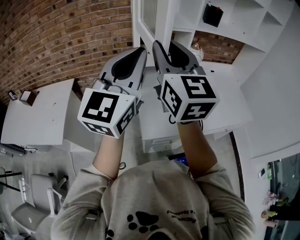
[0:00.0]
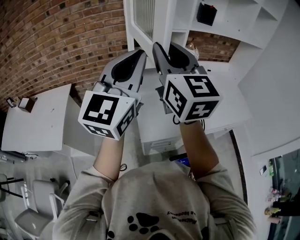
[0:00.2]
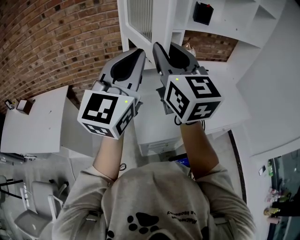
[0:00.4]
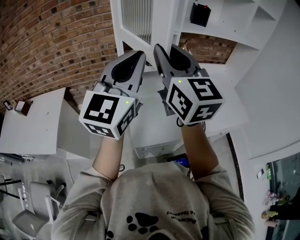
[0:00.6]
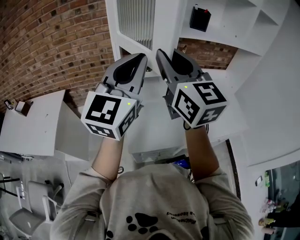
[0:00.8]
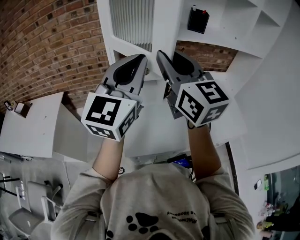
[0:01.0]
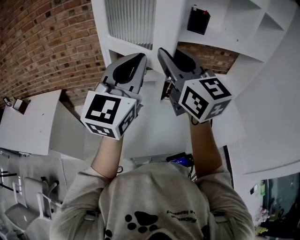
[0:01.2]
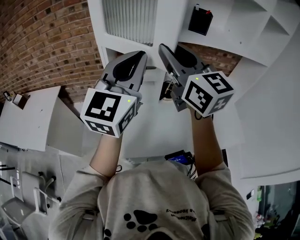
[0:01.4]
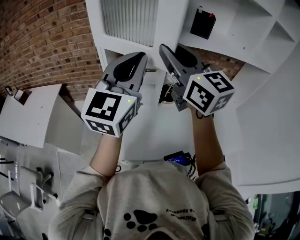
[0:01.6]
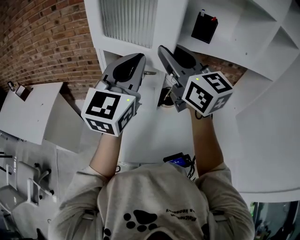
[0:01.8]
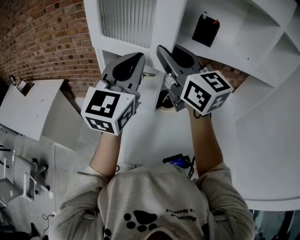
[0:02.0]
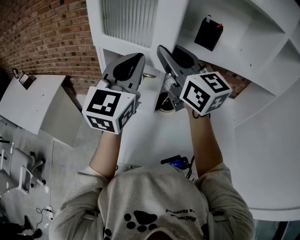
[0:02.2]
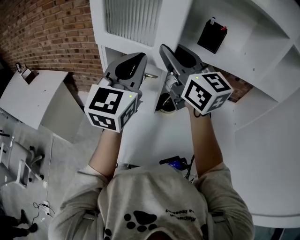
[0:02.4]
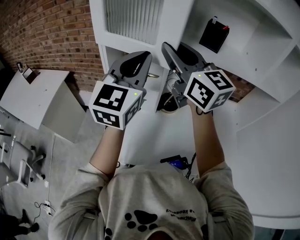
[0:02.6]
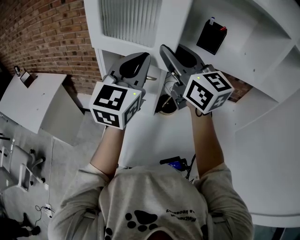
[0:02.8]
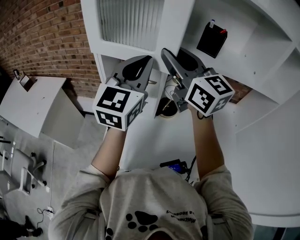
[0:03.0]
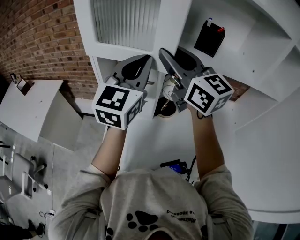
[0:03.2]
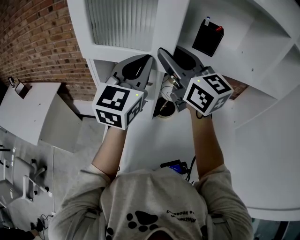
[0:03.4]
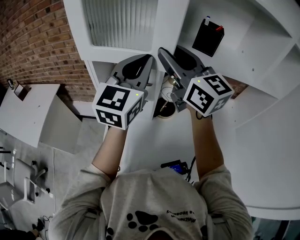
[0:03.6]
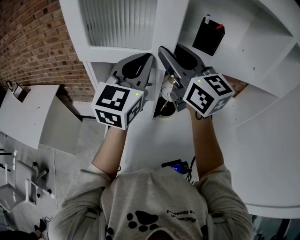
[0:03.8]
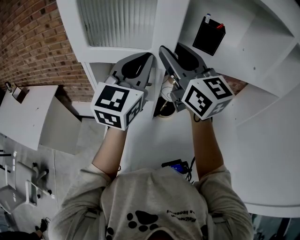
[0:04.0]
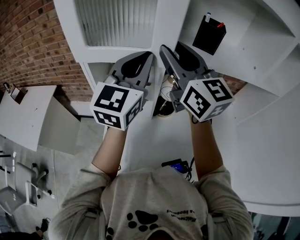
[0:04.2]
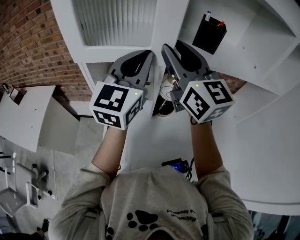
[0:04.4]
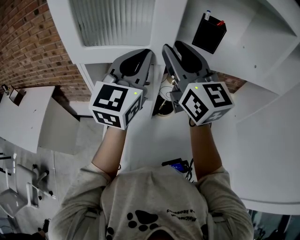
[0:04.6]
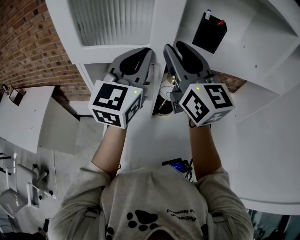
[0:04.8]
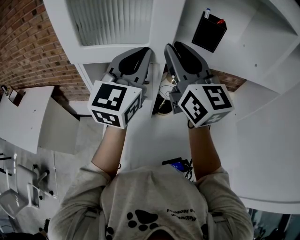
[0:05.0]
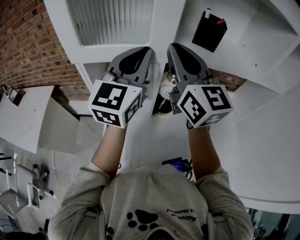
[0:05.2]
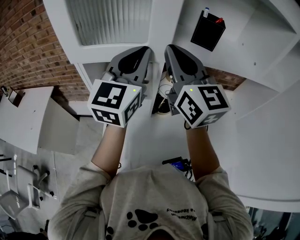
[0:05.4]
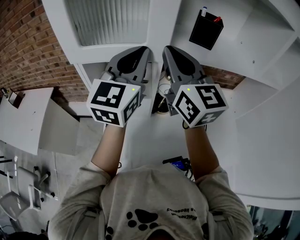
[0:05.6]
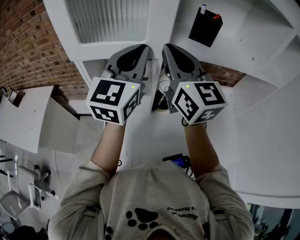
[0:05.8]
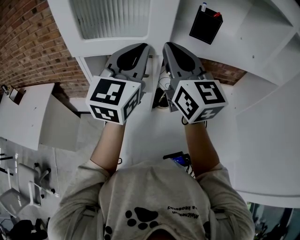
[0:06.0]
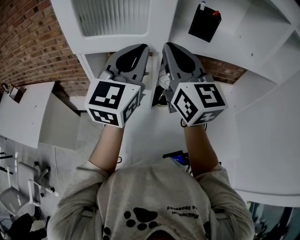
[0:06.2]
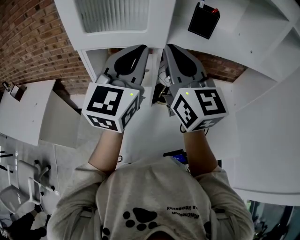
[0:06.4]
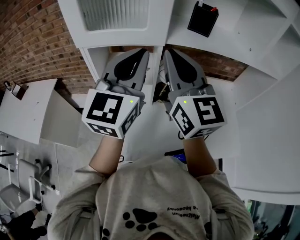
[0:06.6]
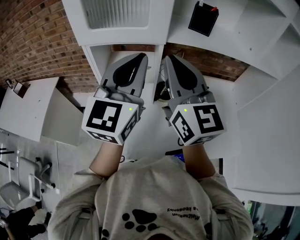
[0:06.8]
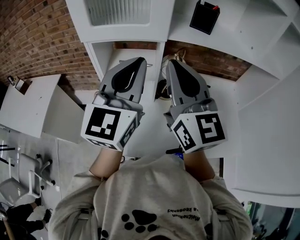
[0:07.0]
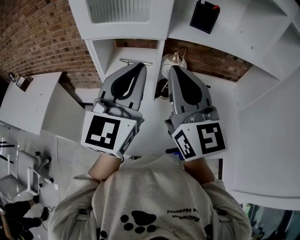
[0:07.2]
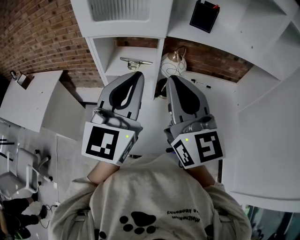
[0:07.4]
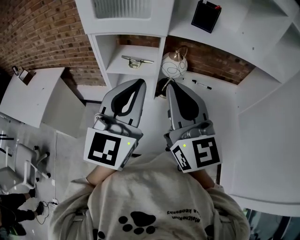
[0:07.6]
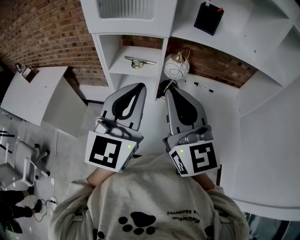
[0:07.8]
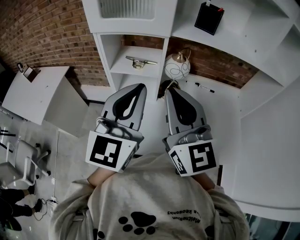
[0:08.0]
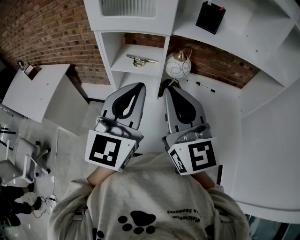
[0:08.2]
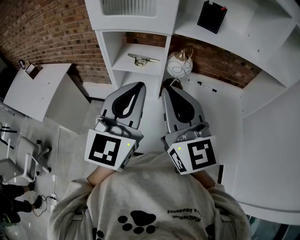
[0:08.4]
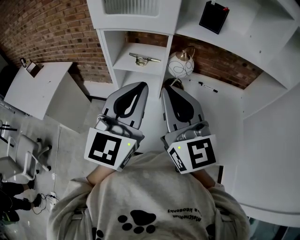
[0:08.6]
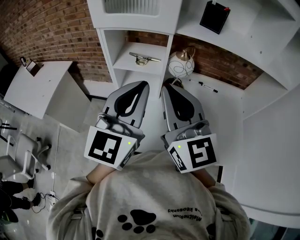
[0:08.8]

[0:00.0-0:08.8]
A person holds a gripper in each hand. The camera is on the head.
0:00.0 to 0:01.4: Both grippers move to the right and forward, approximately 20 cm.
0:01.4 to 0:03.0: The two grippers go approximately 10 cm forward and to the right.
0:03.0 to 0:04.4: The left gripper moves forward, roughly 5 cm.
0:04.4 to 0:05.8: The right gripper closes.
0:05.8 to 0:07.4: The two grippers go about 20 cm backward.
0:07.4 to 0:08.8: There are only small adjustments of the grippers.

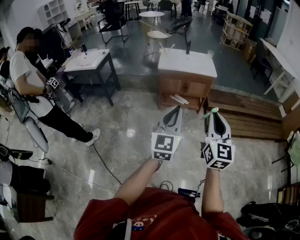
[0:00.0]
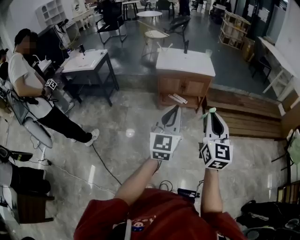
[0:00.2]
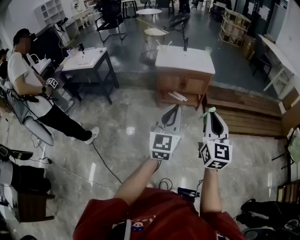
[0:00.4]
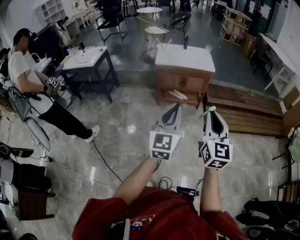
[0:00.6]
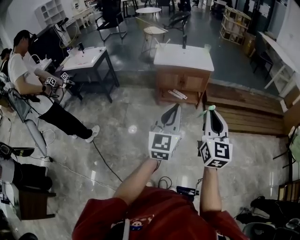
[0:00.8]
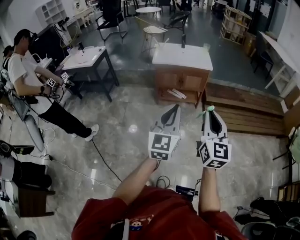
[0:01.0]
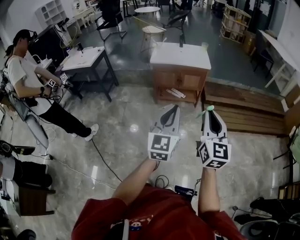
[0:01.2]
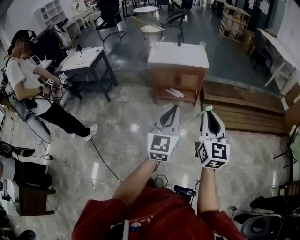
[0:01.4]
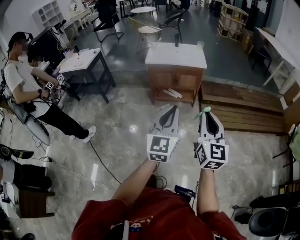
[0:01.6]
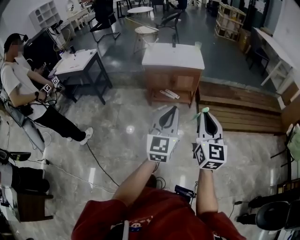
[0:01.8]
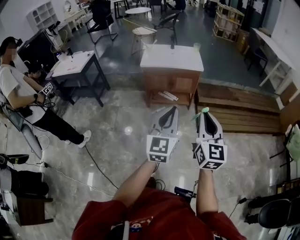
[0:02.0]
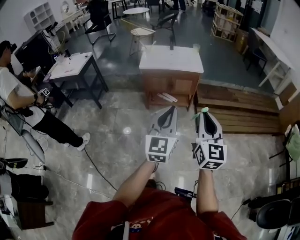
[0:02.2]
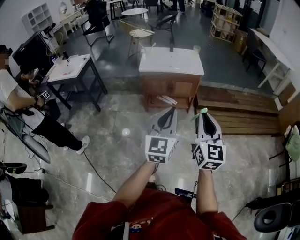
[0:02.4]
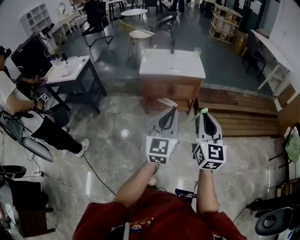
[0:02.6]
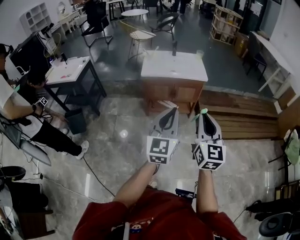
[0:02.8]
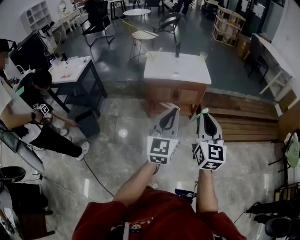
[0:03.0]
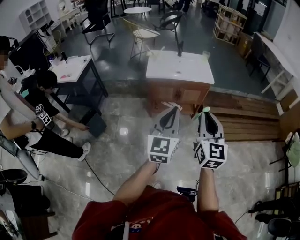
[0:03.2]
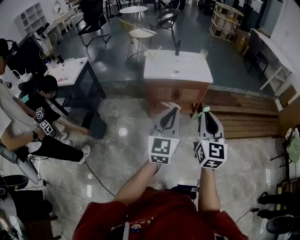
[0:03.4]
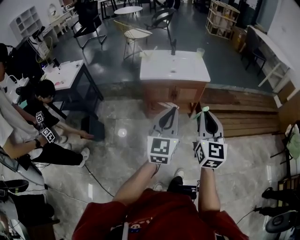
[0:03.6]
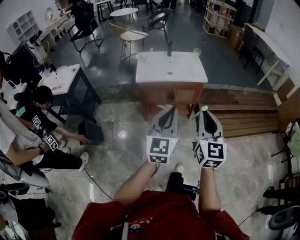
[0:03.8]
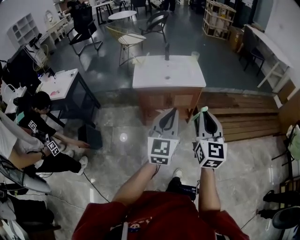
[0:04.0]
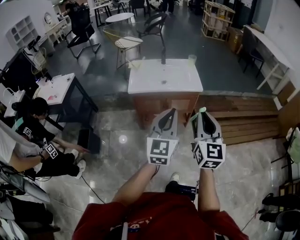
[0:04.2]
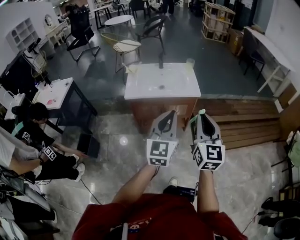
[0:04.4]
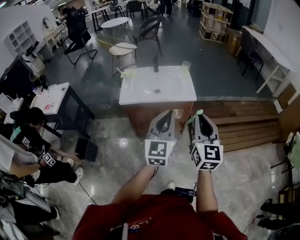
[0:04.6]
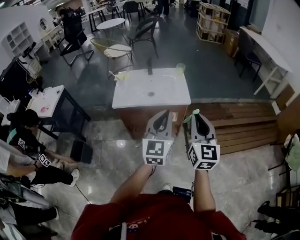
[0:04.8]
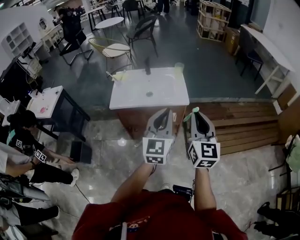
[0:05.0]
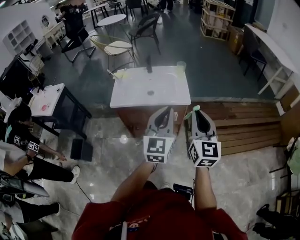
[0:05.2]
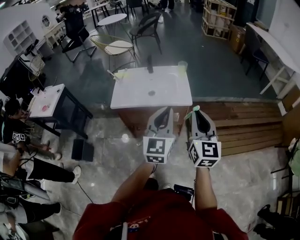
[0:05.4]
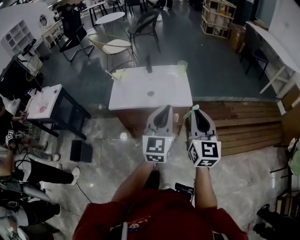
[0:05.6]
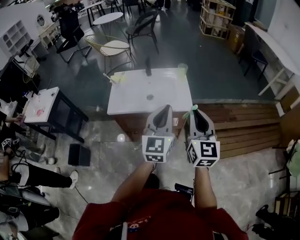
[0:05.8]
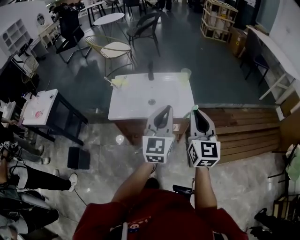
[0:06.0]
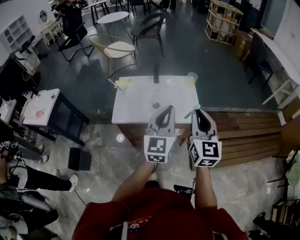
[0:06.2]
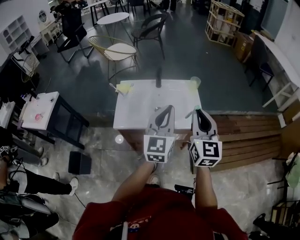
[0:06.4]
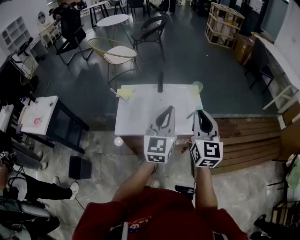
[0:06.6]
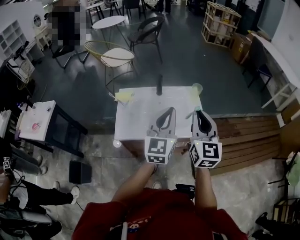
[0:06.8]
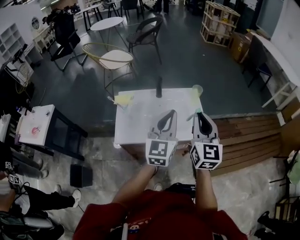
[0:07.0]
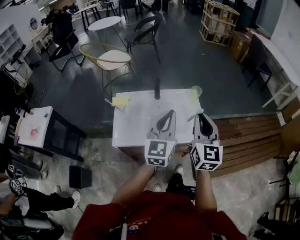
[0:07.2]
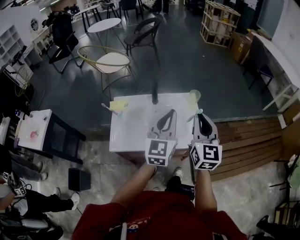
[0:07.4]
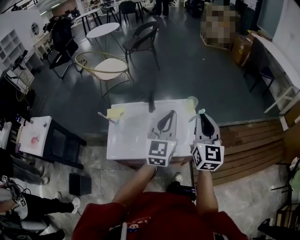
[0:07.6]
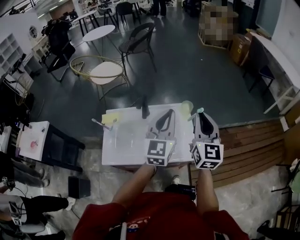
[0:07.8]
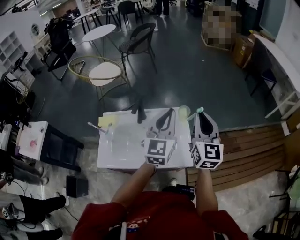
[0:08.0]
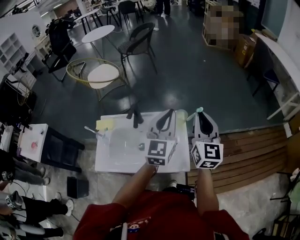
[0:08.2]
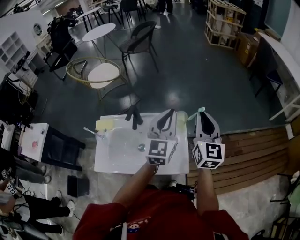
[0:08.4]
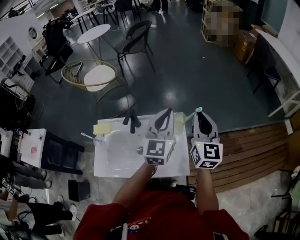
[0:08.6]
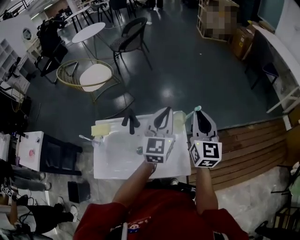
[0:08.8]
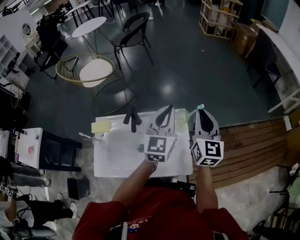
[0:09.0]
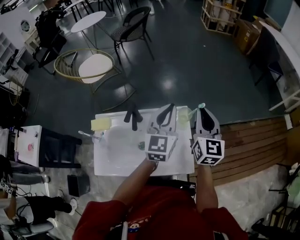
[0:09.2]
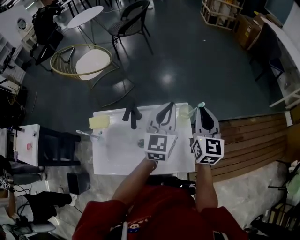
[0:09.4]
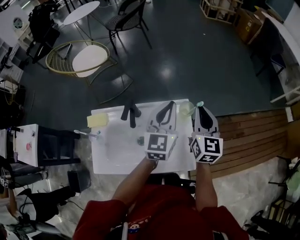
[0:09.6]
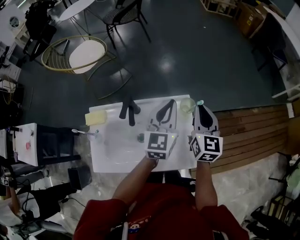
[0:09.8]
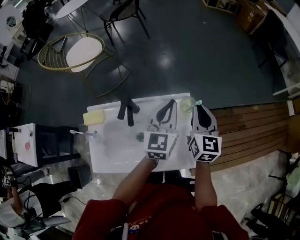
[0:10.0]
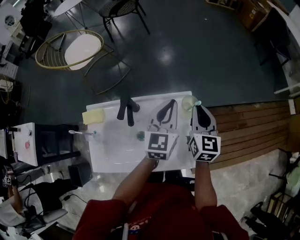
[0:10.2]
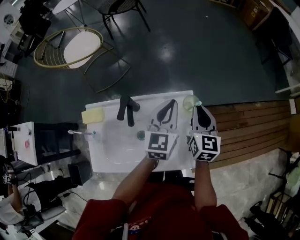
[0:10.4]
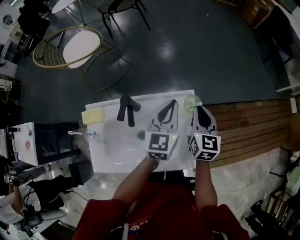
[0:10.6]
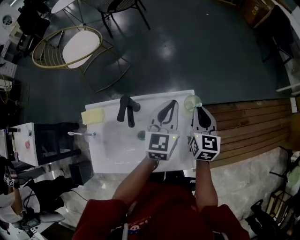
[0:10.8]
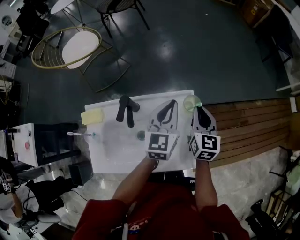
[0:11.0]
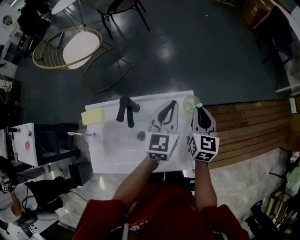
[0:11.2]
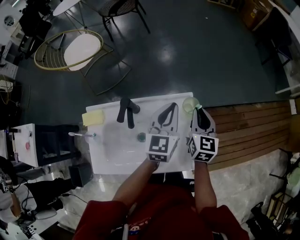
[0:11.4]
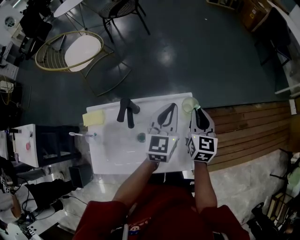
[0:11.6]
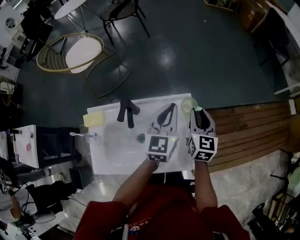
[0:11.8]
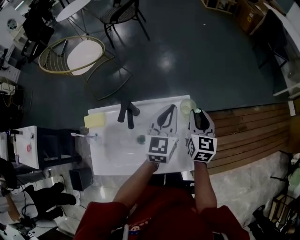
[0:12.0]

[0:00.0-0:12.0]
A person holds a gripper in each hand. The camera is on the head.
0:00.0 to 0:01.6: Both grippers move to the right, about 10 cm.
0:01.6 to 0:03.0: The grippers both shift forward and to the left by roughly 20 cm.
0:03.0 to 0:04.4: Both grippers move forward and to the right, some 20 cm.
0:04.4 to 0:06.0: The two grippers go some 25 cm forward.
0:06.0 to 0:07.6: Both grippers move forward, some 25 cm.
0:07.6 to 0:09.0: The two grippers go roughly 20 cm forward.
0:09.0 to 0:10.4: The right gripper is displaced downward by some 15 cm; the left gripper is displaced downward and forward by approximately 15 cm.
0:10.4 to 0:12.0: There are only small adjustments of the grippers.

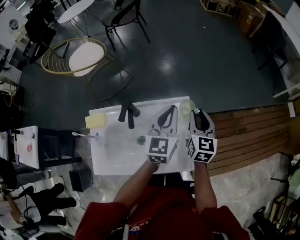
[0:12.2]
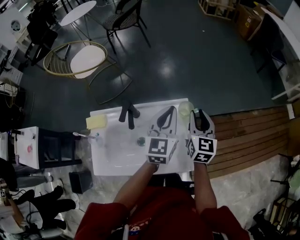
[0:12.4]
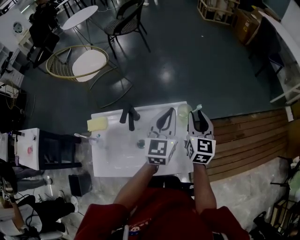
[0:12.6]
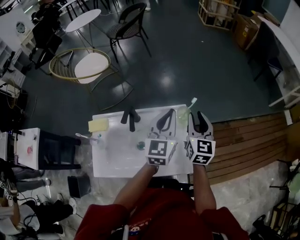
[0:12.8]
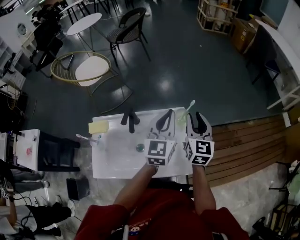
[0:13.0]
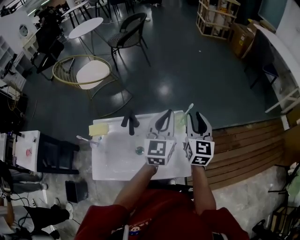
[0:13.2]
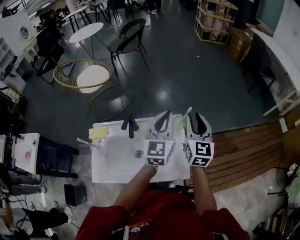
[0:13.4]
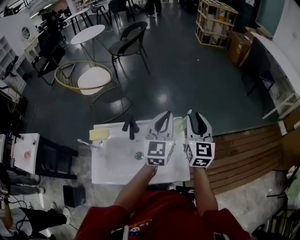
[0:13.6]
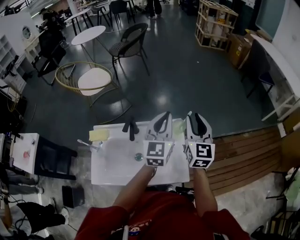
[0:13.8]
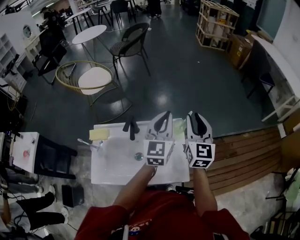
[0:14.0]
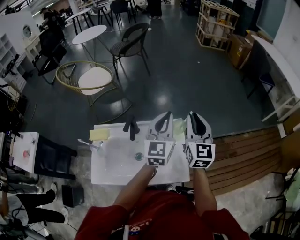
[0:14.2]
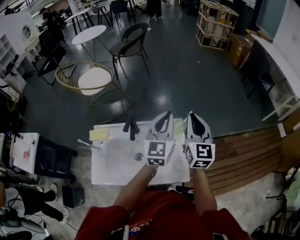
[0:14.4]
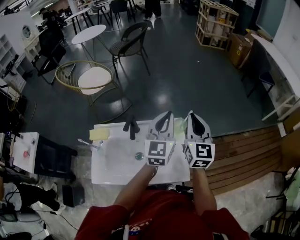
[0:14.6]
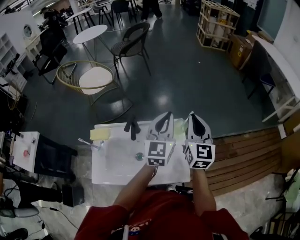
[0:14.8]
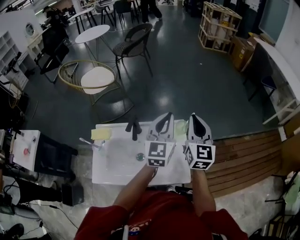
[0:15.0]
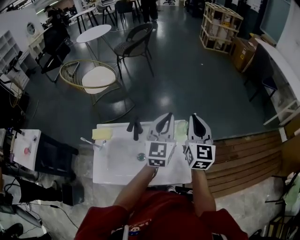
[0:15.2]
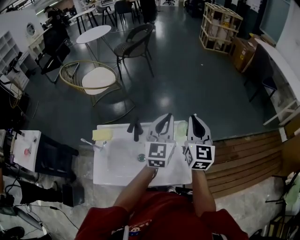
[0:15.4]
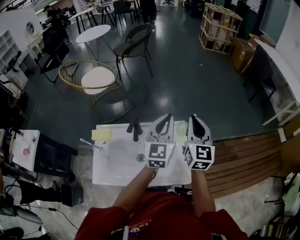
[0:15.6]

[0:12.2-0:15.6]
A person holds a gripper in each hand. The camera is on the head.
0:12.2 to 0:13.8: The grippers both shift upward by about 10 cm.
0:13.8 to 0:15.6: The right gripper closes its fingers.
